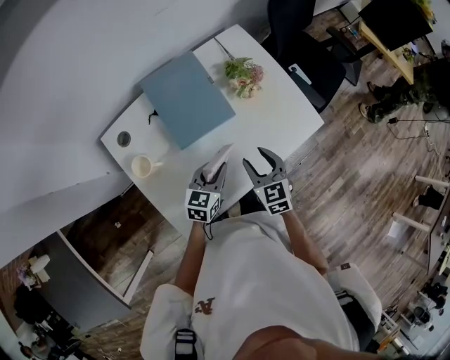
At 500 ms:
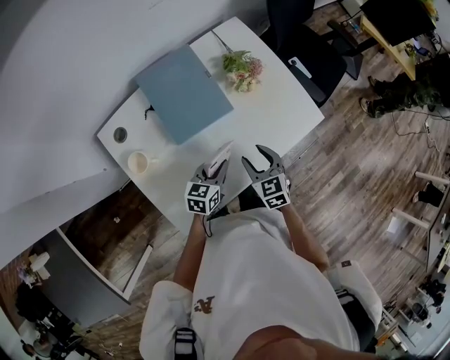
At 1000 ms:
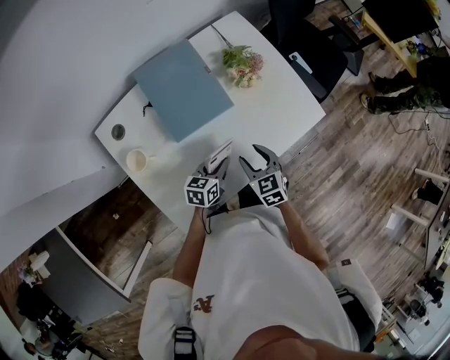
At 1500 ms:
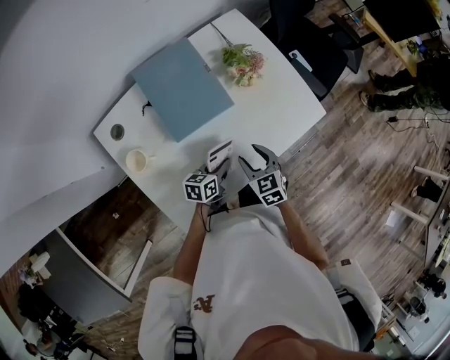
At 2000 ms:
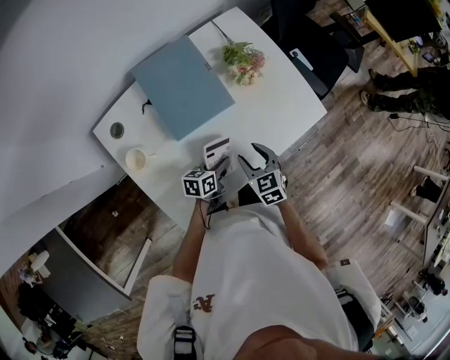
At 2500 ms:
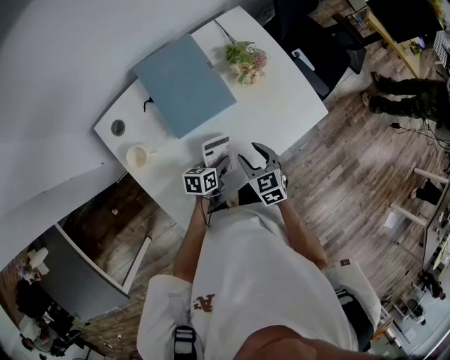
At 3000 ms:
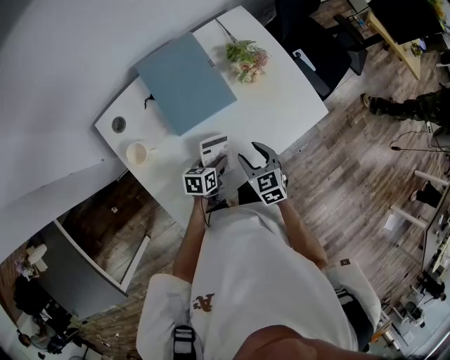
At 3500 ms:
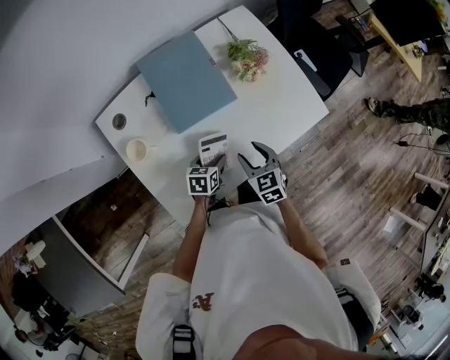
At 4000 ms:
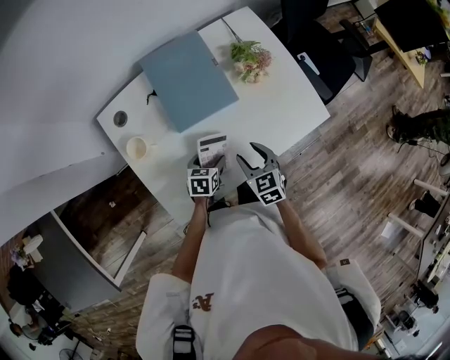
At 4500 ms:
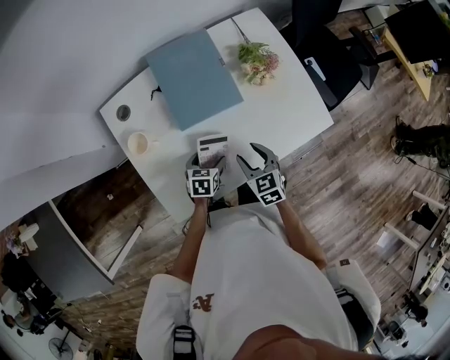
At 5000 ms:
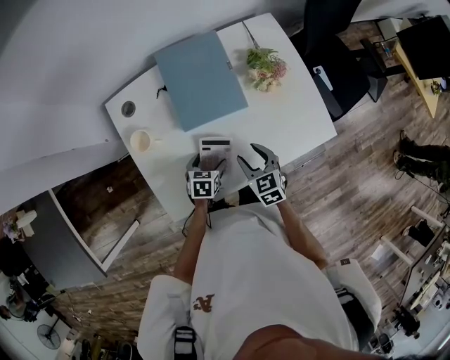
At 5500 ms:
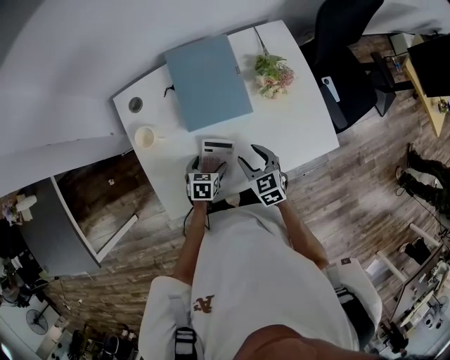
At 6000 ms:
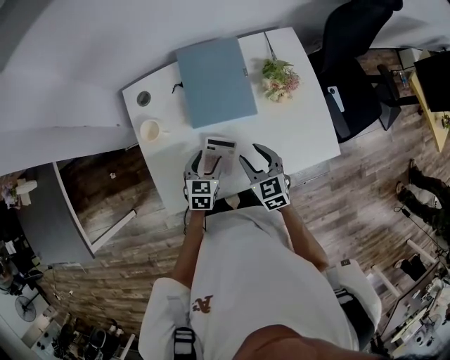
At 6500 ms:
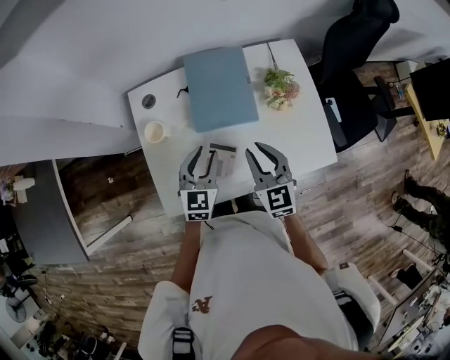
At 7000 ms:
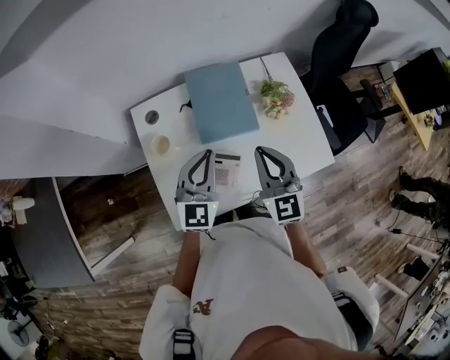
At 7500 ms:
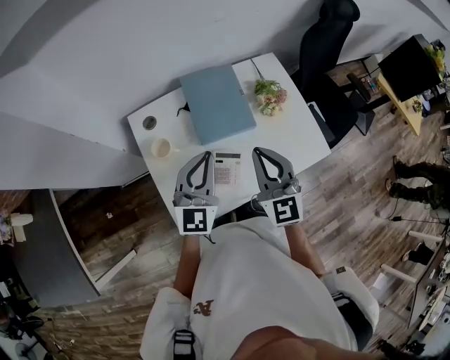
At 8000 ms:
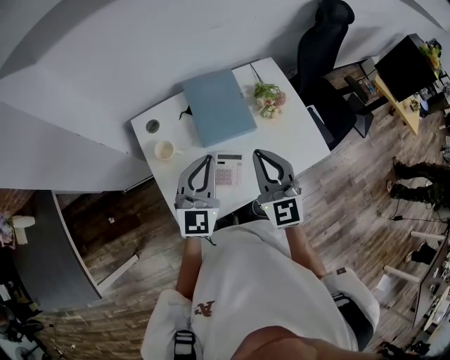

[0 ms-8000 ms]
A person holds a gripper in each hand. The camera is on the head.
0 ms to 2000 ms: The right gripper is displaced downward by roughly 5 cm, while the left gripper is displaced downward by some 10 cm, and changes its angle by about 30 degrees.
2000 ms to 4000 ms: The left gripper turns by some 20 degrees, and opens its fingers.
4000 ms to 6000 ms: The right gripper moves some 5 cm; the left gripper shifts approximately 10 cm upward, and turns by about 20 degrees.
6000 ms to 8000 ms: Both grippers move upward, roughly 25 cm. The right gripper changes its angle by approximately 30 degrees, and closes. Meanwhile the left gripper tilts its fingers some 40 degrees upward, and closes.

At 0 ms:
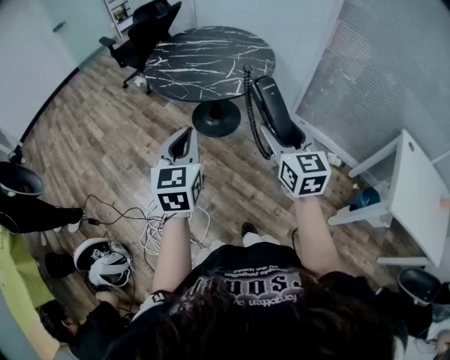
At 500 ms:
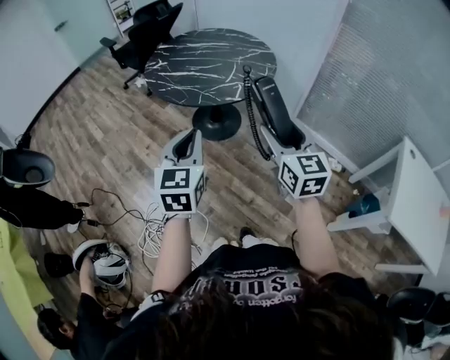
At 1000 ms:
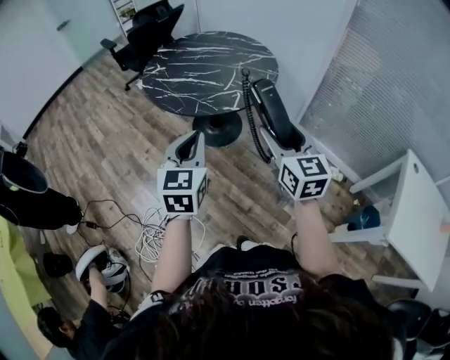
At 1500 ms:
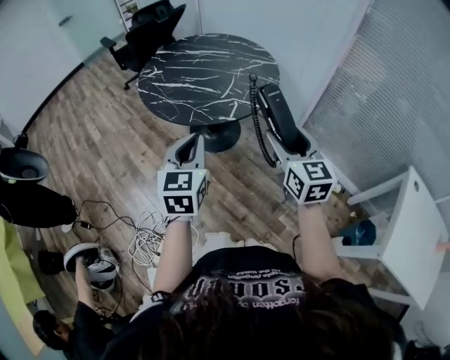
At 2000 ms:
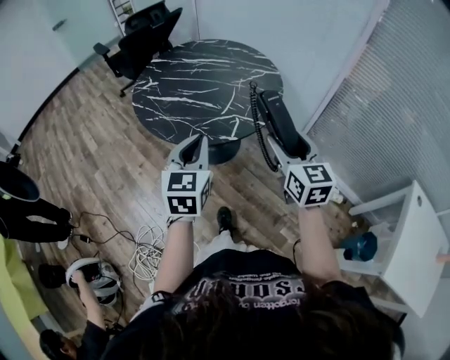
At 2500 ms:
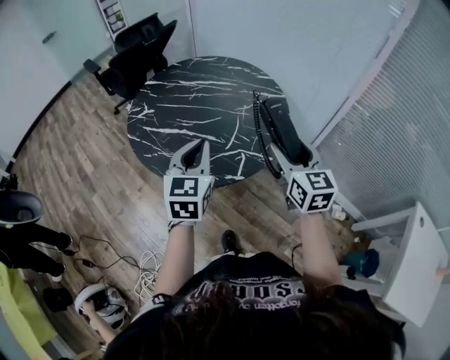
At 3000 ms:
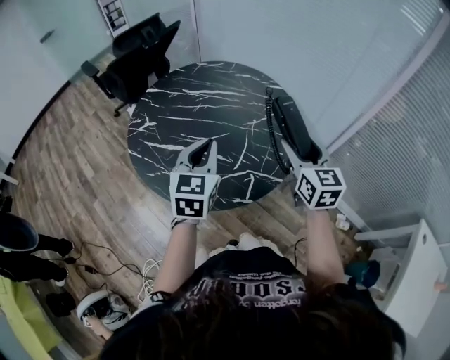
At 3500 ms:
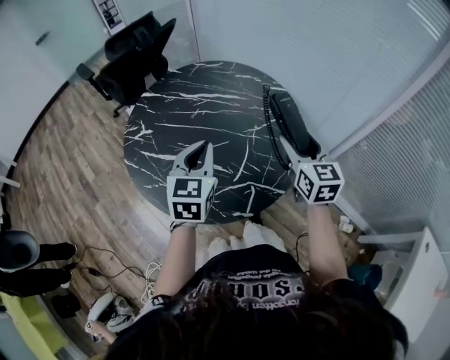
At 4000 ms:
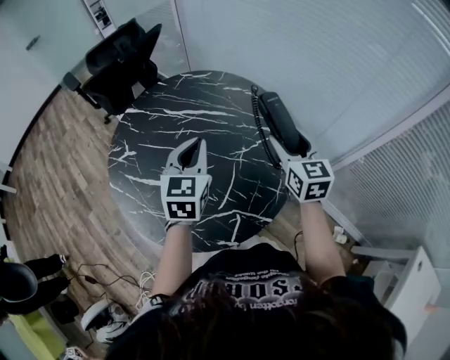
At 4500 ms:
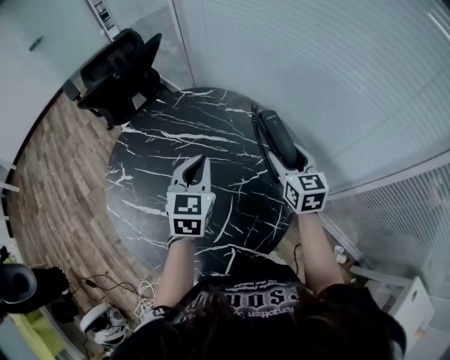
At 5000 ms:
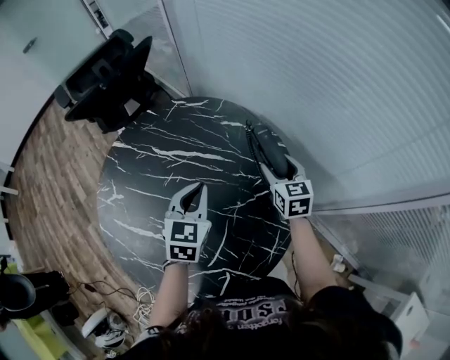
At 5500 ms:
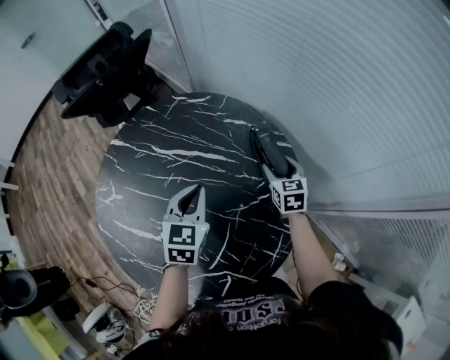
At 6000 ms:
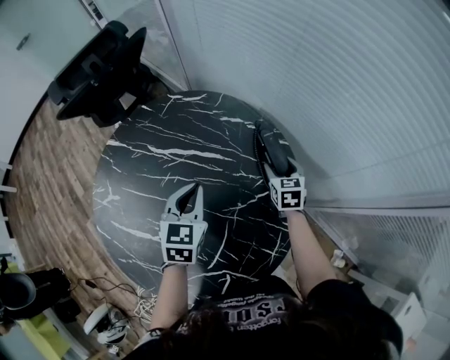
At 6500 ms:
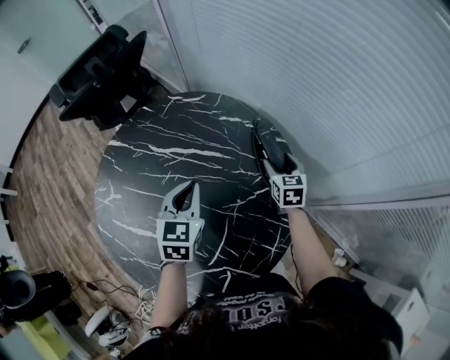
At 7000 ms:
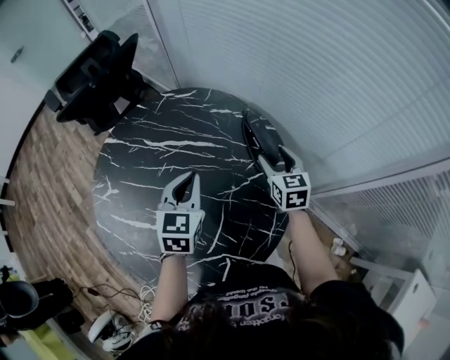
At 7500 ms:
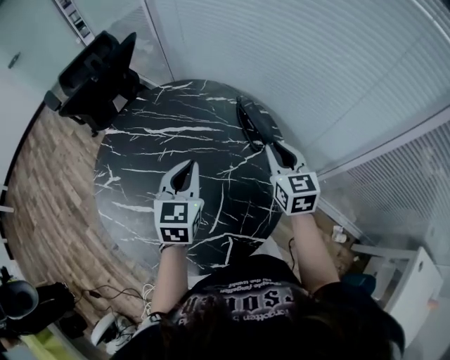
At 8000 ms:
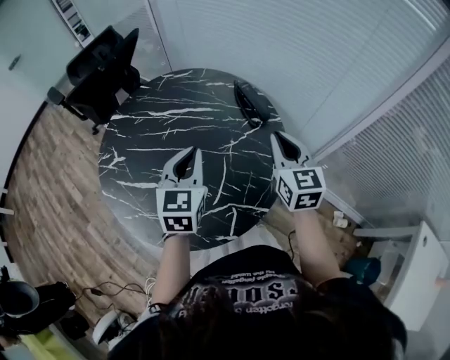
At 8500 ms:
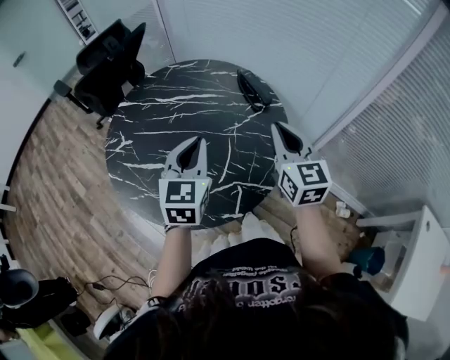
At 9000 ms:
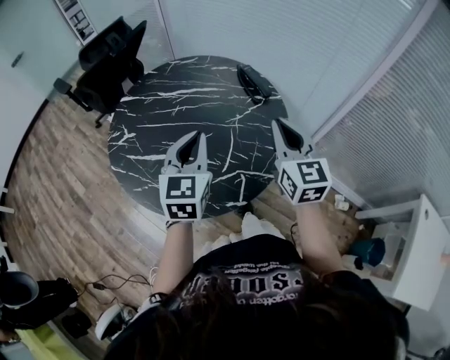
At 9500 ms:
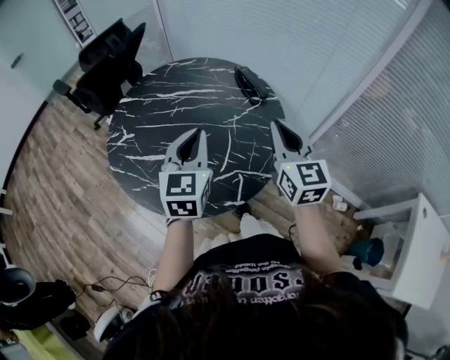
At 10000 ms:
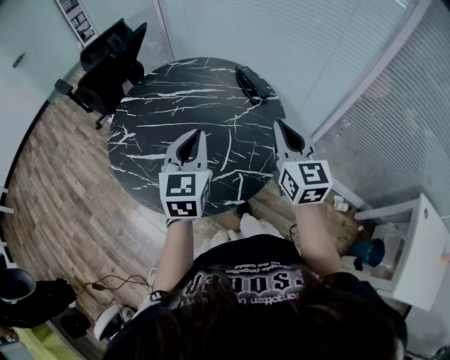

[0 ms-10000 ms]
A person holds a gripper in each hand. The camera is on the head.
0 ms to 2000 ms: The grippers both shift forward by about 25 cm.
2000 ms to 4000 ms: Both grippers are carried forward, approximately 40 cm.
4000 ms to 6000 ms: The left gripper shifts about 15 cm downward and forward. The right gripper is displaced downward and forward by roughly 30 cm, and swivels roughly 20 degrees.
6000 ms to 8000 ms: The right gripper goes roughly 35 cm backward and upward, changes its angle by approximately 30 degrees, and closes up; the left gripper travels backward and upward by about 20 cm.
8000 ms to 10000 ms: The right gripper heads backward and upward, covering roughly 15 cm, while the left gripper moves backward, roughly 10 cm.

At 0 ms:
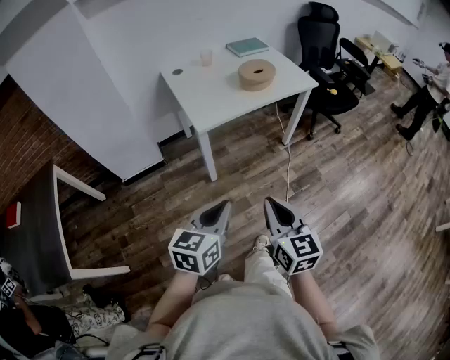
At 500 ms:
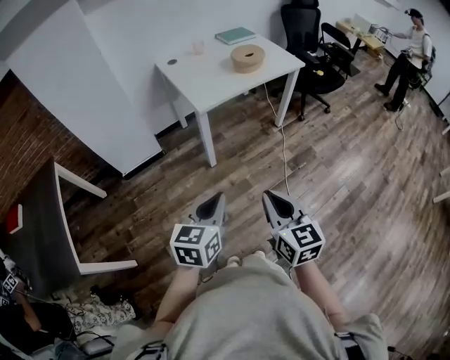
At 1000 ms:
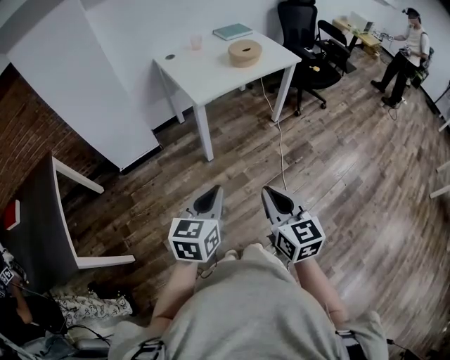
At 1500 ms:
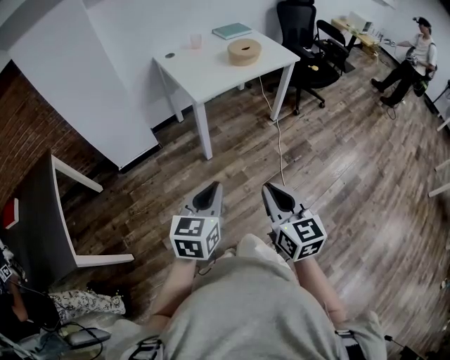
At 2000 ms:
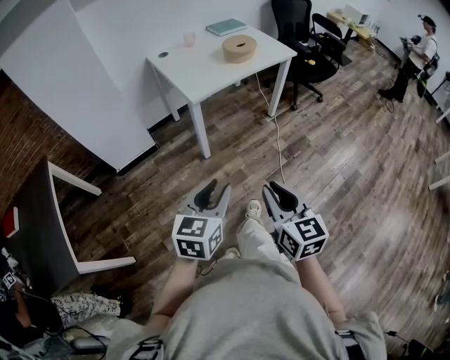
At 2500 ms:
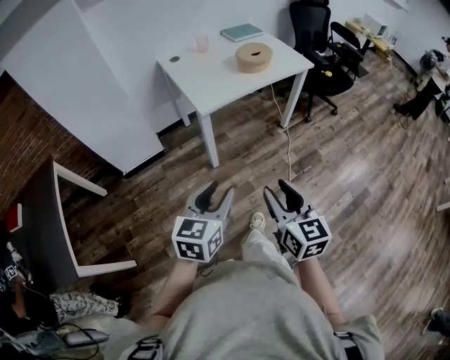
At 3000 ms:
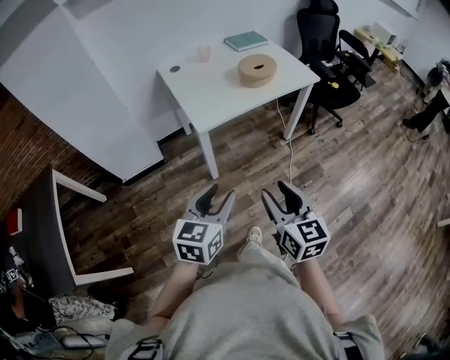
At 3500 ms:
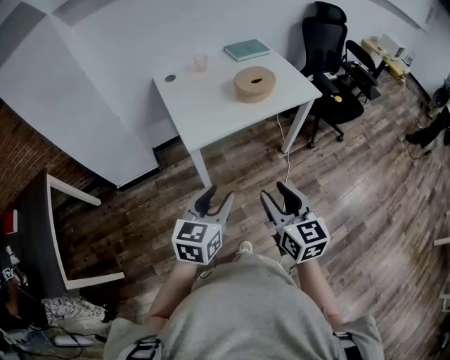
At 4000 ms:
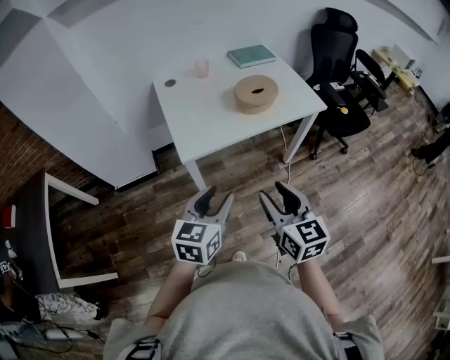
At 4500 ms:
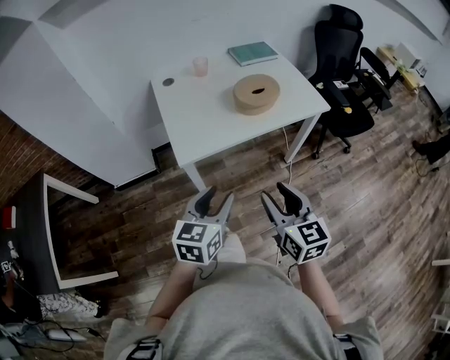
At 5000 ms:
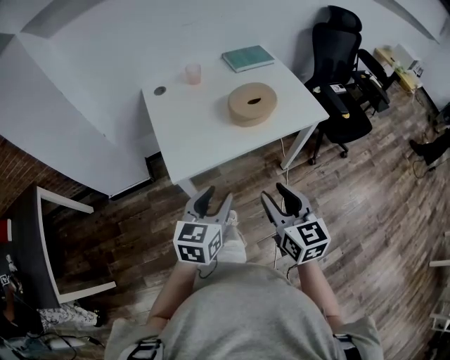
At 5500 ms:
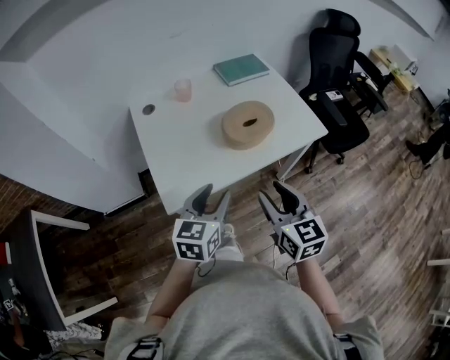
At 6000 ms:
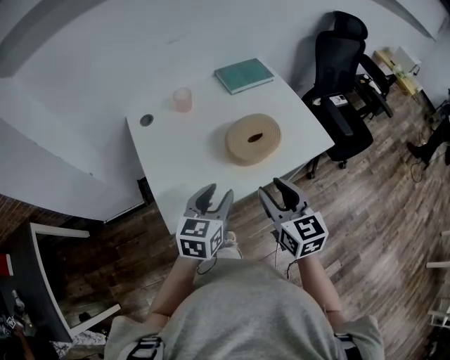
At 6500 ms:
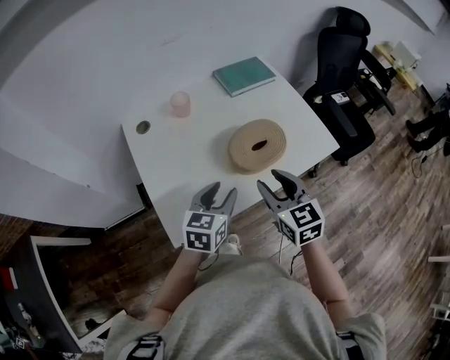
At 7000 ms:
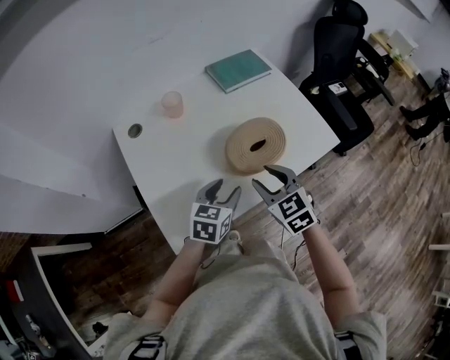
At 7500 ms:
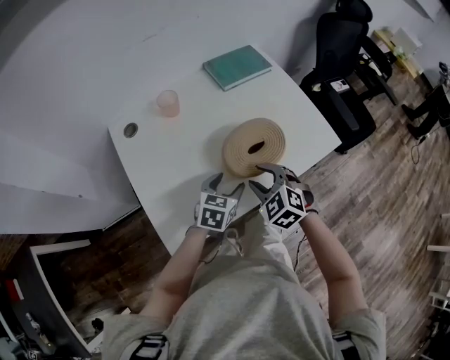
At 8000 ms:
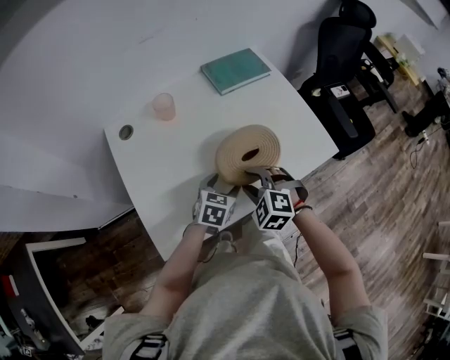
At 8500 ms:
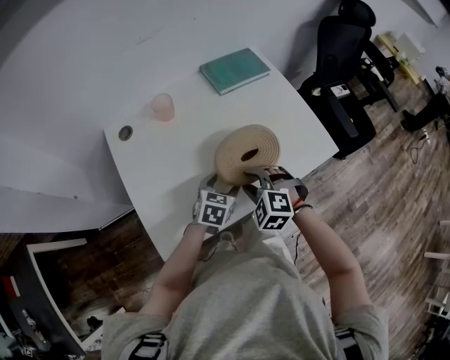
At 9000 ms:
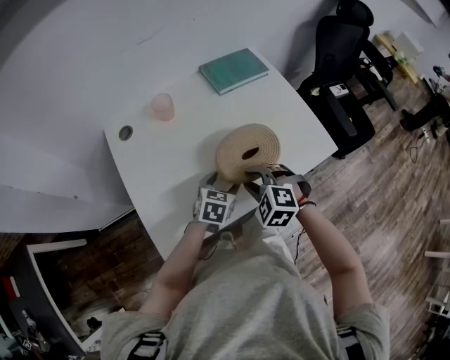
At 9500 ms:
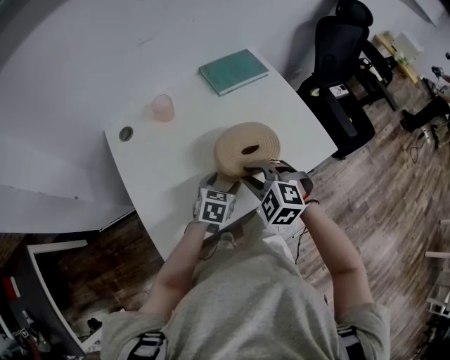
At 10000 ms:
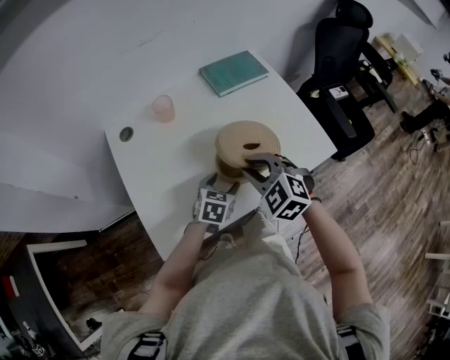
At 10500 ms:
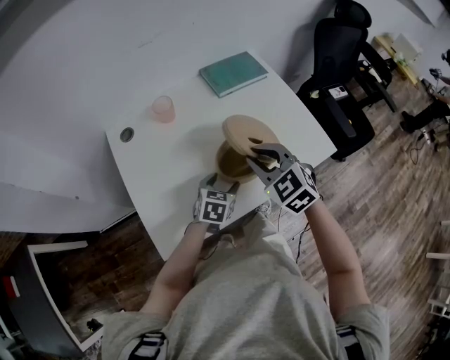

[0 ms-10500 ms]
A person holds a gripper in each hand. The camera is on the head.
0 ms to 2000 ms: The two grippers go some 10 cm backward. The left gripper opens its fingers.
2000 ms to 4000 ms: Both grippers travel together forward, about 35 cm. The right gripper opens its fingers.
4000 ms to 6500 ms: Both grippers move forward, some 40 cm.
6500 ms to 8500 ms: The right gripper shifts approximately 15 cm downward and forward, and rolls counterclockwise, seen from behind, by approximately 50 degrees; the left gripper shifts about 15 cm downward, forward and to the right, and opens its fingers.
8500 ms to 10500 ms: The right gripper is displaced upward by some 10 cm, turns by about 30 degrees, and closes its fingers.
